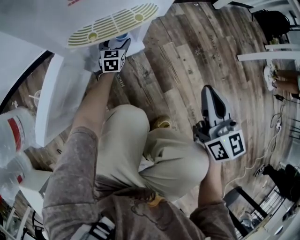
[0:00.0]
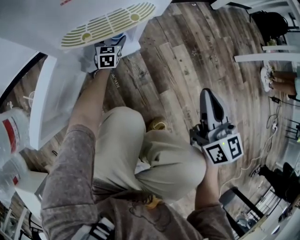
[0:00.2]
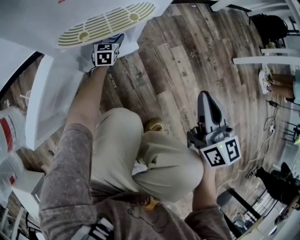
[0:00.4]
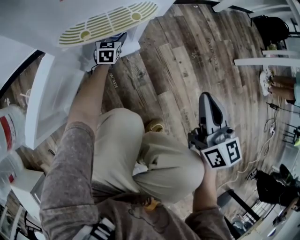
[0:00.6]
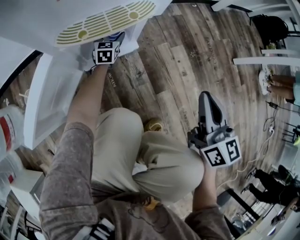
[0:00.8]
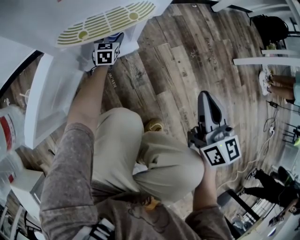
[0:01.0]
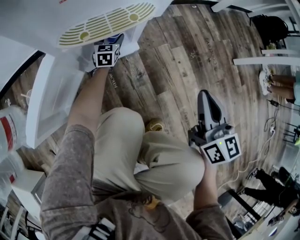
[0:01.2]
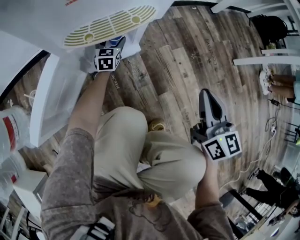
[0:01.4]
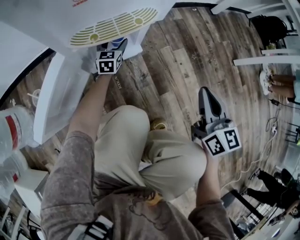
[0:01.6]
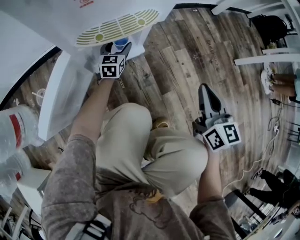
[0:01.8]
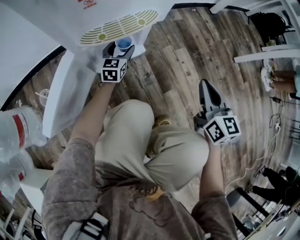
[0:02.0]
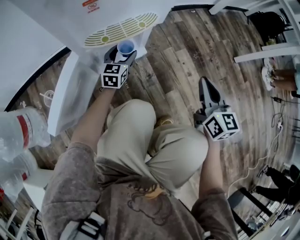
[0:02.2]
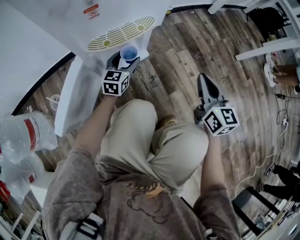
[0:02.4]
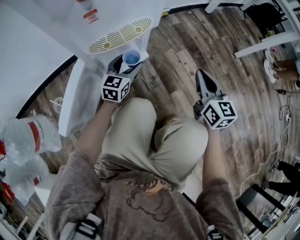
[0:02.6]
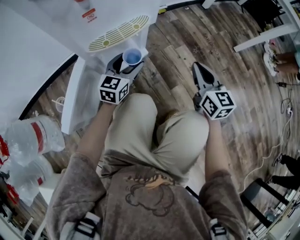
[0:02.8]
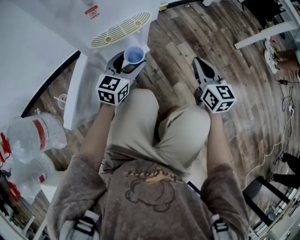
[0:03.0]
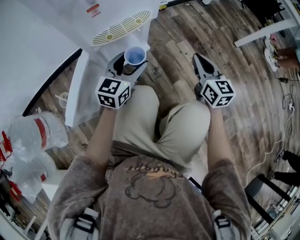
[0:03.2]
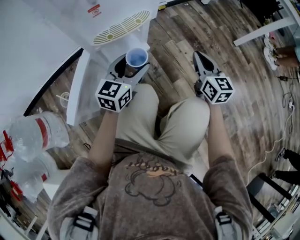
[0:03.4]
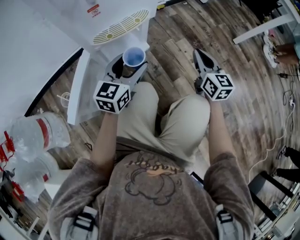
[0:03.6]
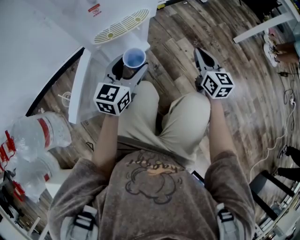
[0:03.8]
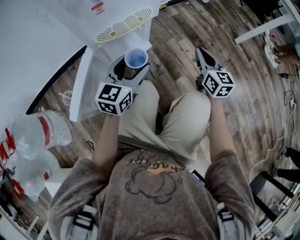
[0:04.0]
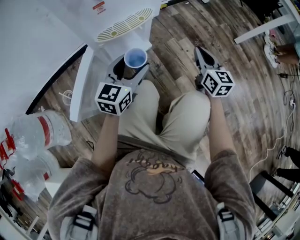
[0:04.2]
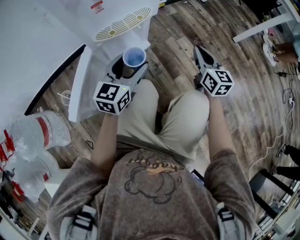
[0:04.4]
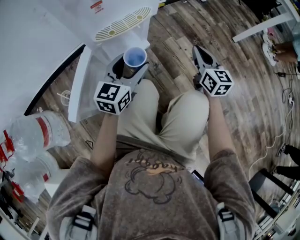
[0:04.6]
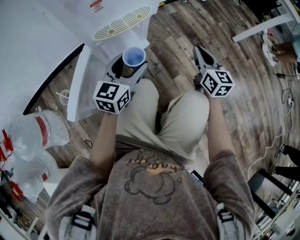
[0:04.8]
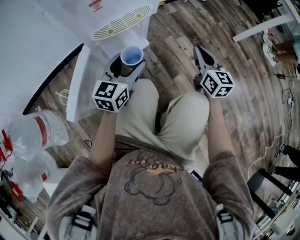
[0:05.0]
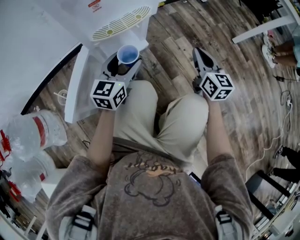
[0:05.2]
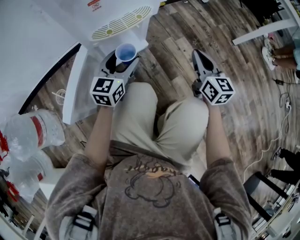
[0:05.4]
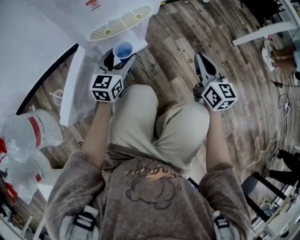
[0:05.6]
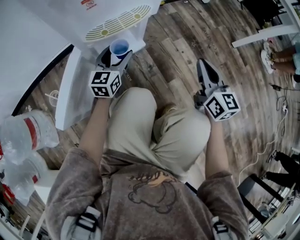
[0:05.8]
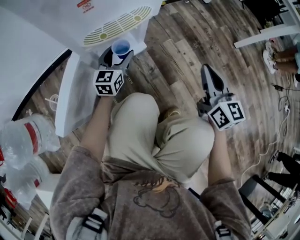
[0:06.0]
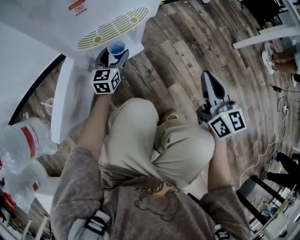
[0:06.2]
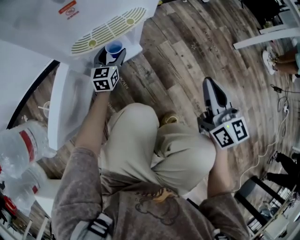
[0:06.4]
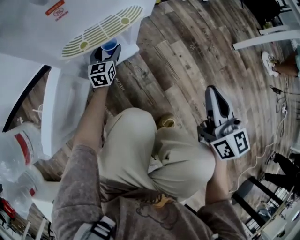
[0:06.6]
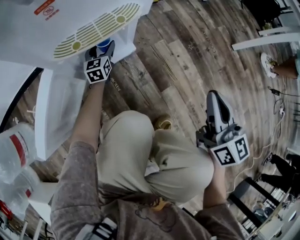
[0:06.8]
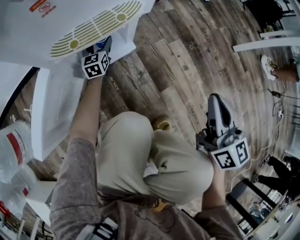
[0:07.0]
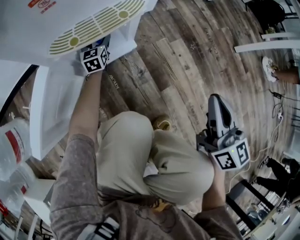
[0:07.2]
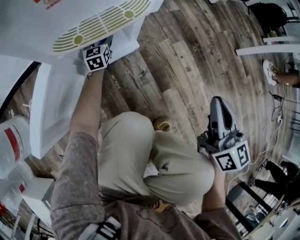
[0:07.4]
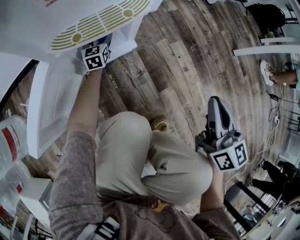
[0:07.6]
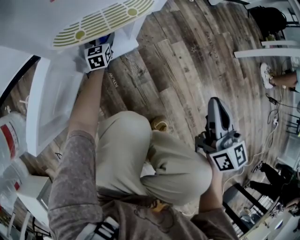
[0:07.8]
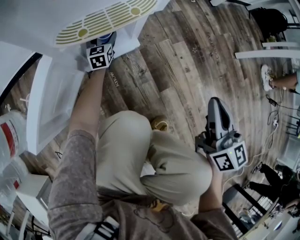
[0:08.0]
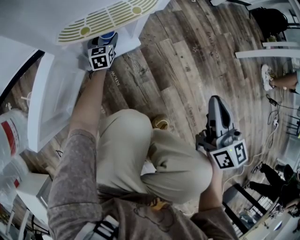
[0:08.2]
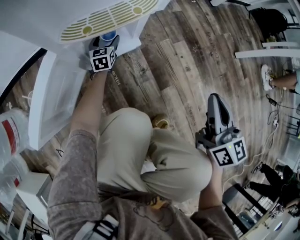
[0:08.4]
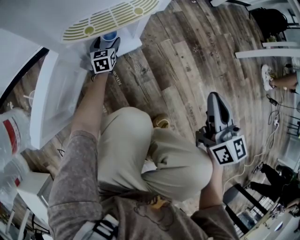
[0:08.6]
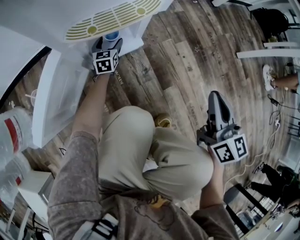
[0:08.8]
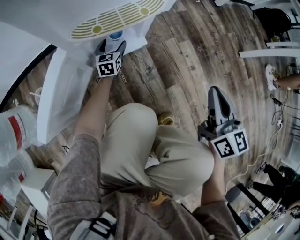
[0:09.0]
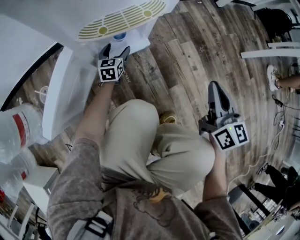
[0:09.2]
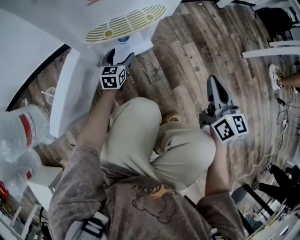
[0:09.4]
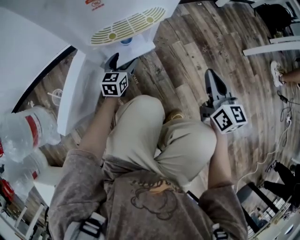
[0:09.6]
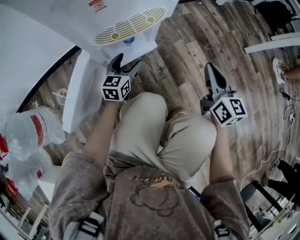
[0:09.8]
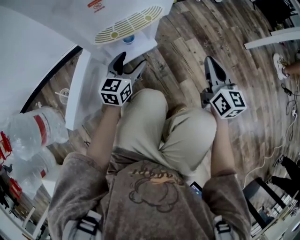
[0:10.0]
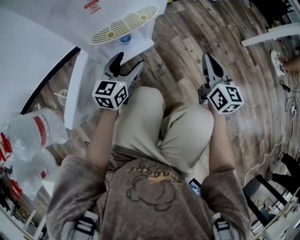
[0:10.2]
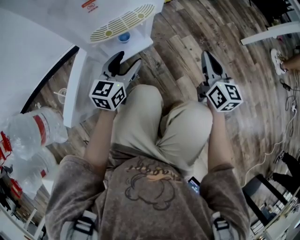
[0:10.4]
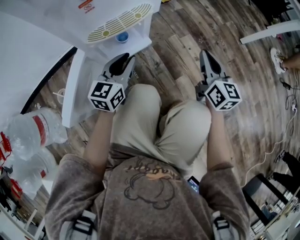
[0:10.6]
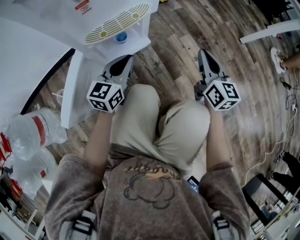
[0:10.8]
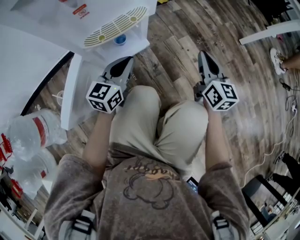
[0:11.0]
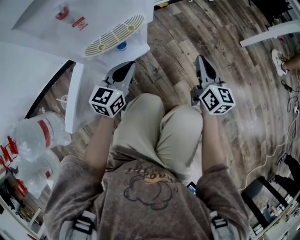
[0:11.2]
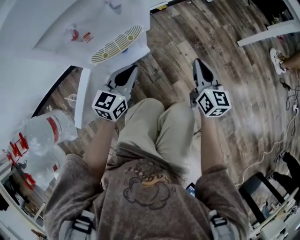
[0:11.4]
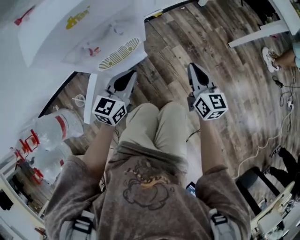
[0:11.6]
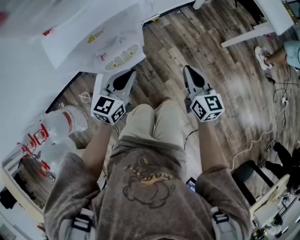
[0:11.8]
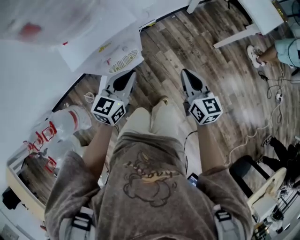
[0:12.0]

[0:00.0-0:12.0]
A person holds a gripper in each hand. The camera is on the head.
0:00.0 to 0:01.6: The grippers move only a little.
0:01.6 to 0:03.0: The left gripper heads upward and backward, covering roughly 25 cm, and changes its angle by approximately 30 degrees.
0:03.0 to 0:04.4: The left gripper travels backward and upward by approximately 10 cm.
0:04.4 to 0:06.0: The left gripper shifts about 20 cm downward and forward.
0:06.0 to 0:07.6: The left gripper shifts about 20 cm downward and forward.
0:07.6 to 0:09.0: The left gripper moves backward, approximately 5 cm.
0:09.0 to 0:10.4: The left gripper moves upward and backward, approximately 30 cm, and turns by roughly 30 degrees, while the right gripper changes place by about 5 cm.
0:10.4 to 0:12.0: Both grippers move upward, roughly 40 cm. The left gripper closes up.

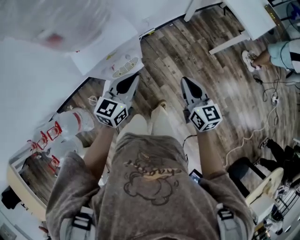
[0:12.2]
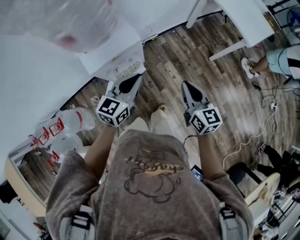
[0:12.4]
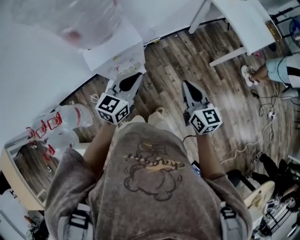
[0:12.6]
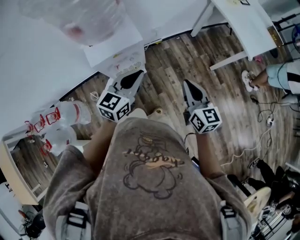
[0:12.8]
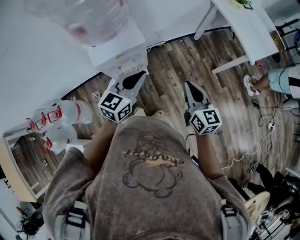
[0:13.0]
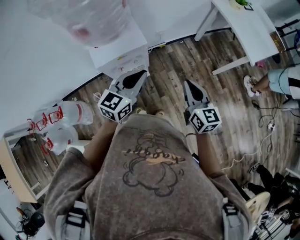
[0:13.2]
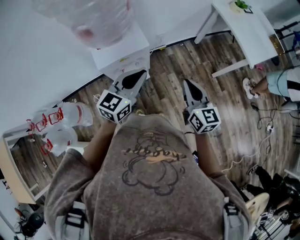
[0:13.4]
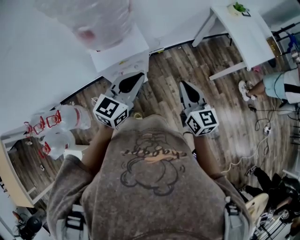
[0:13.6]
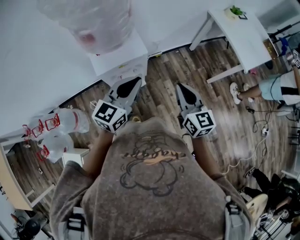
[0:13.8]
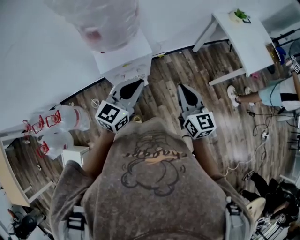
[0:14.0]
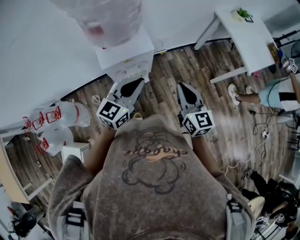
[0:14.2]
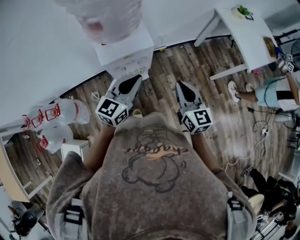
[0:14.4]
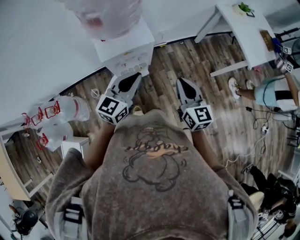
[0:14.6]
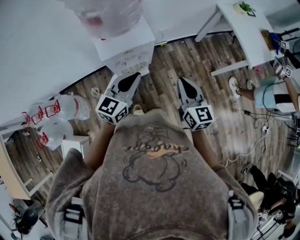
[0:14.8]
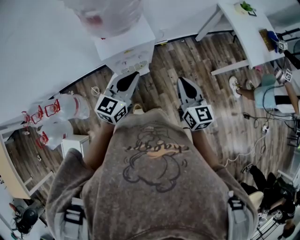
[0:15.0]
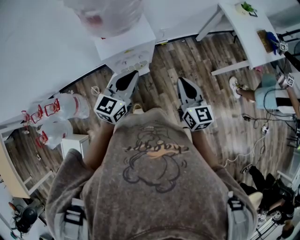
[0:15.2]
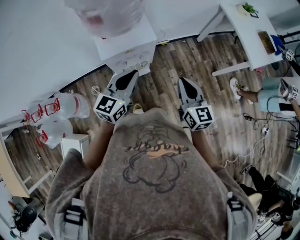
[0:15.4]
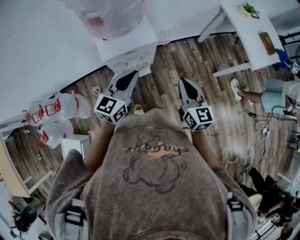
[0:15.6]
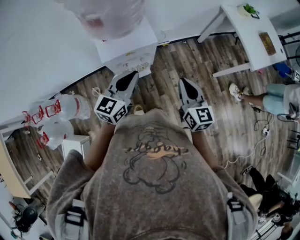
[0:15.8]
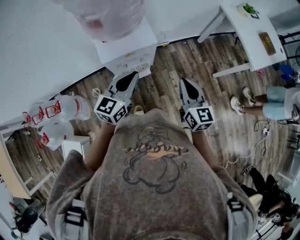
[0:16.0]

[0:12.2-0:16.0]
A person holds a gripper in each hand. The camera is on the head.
0:12.2 to 0:13.4: The grippers both shift upward by about 10 cm.
0:13.4 to 0:14.8: The right gripper shifts by some 5 cm; the left gripper travels to the left by about 5 cm.
0:14.8 to 0:16.0: The grippers move only a little.

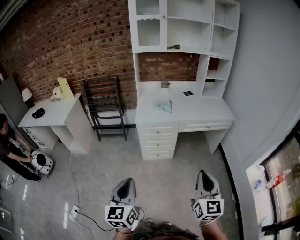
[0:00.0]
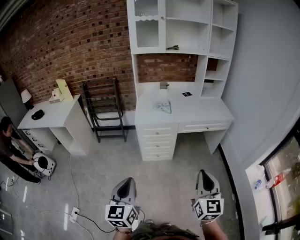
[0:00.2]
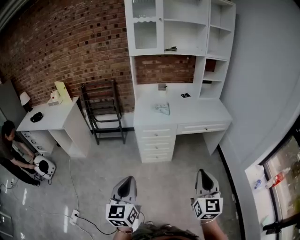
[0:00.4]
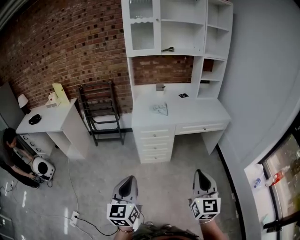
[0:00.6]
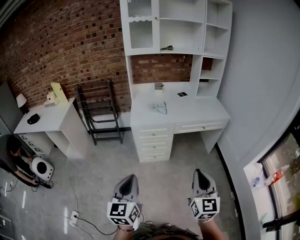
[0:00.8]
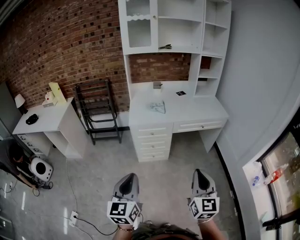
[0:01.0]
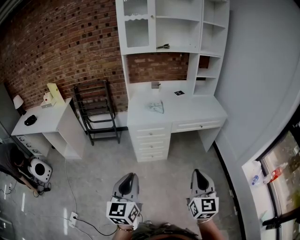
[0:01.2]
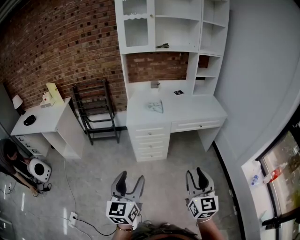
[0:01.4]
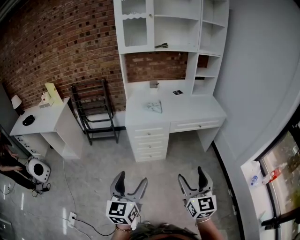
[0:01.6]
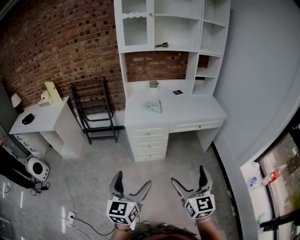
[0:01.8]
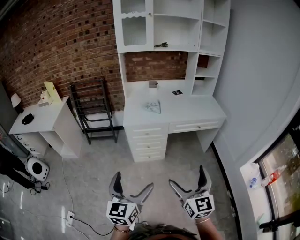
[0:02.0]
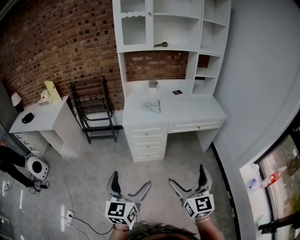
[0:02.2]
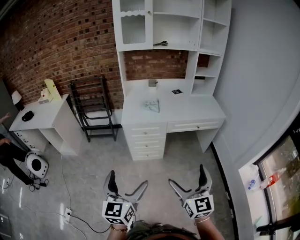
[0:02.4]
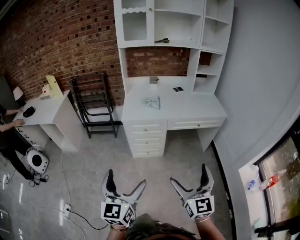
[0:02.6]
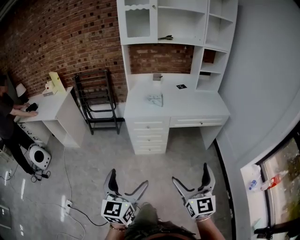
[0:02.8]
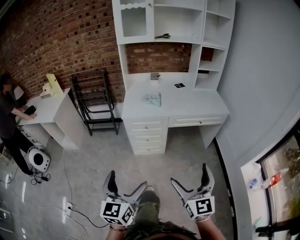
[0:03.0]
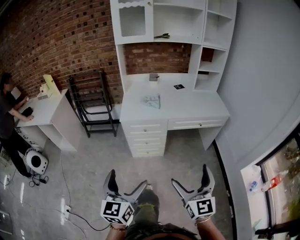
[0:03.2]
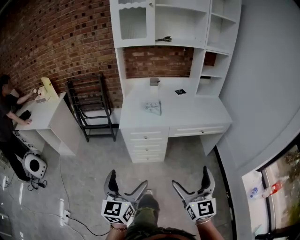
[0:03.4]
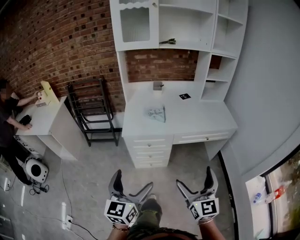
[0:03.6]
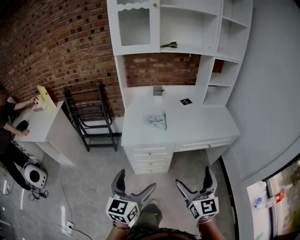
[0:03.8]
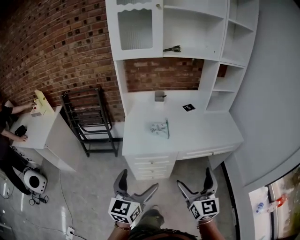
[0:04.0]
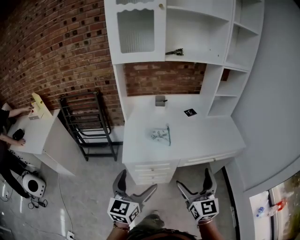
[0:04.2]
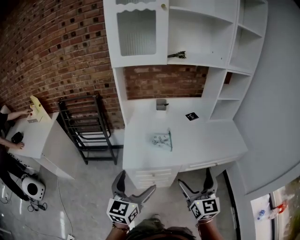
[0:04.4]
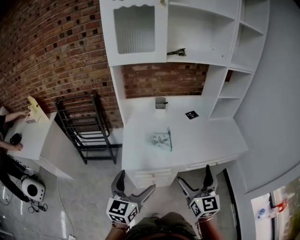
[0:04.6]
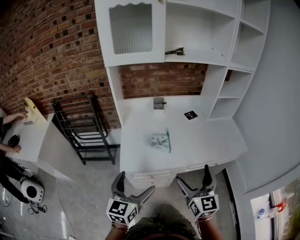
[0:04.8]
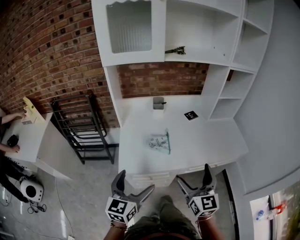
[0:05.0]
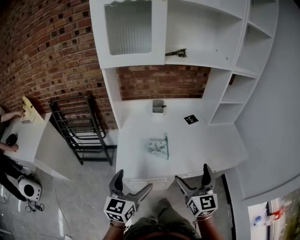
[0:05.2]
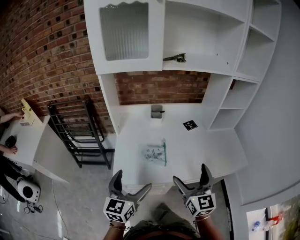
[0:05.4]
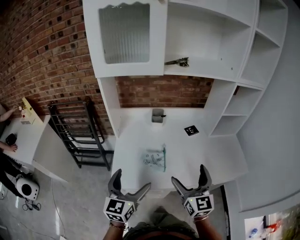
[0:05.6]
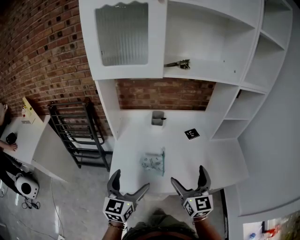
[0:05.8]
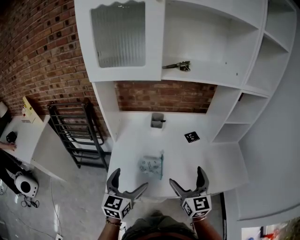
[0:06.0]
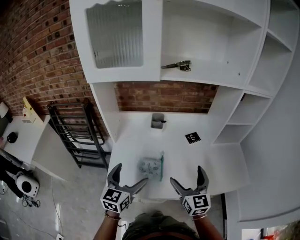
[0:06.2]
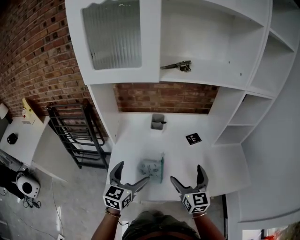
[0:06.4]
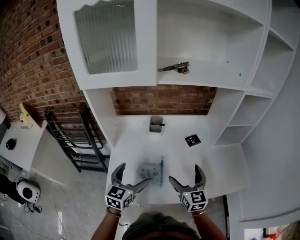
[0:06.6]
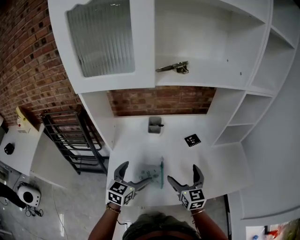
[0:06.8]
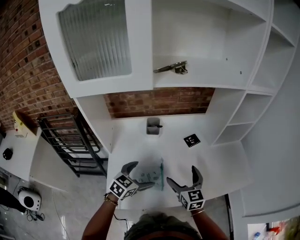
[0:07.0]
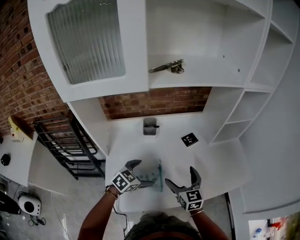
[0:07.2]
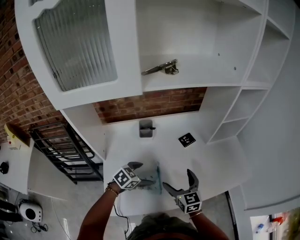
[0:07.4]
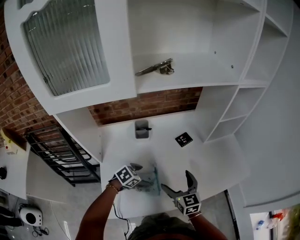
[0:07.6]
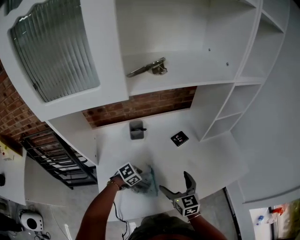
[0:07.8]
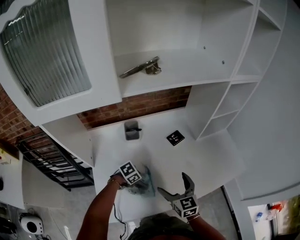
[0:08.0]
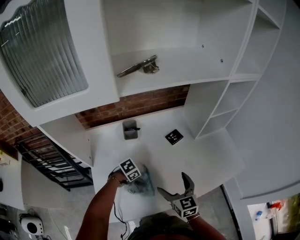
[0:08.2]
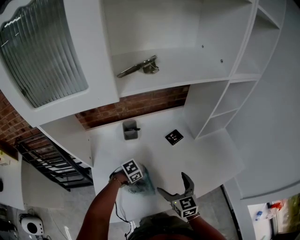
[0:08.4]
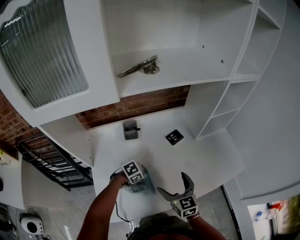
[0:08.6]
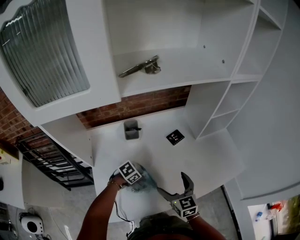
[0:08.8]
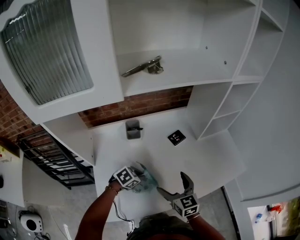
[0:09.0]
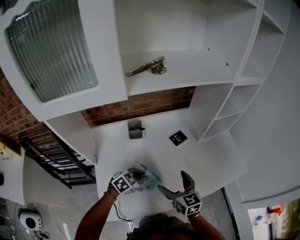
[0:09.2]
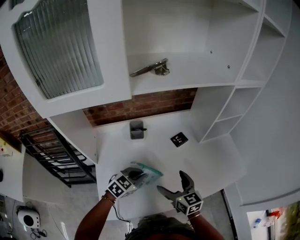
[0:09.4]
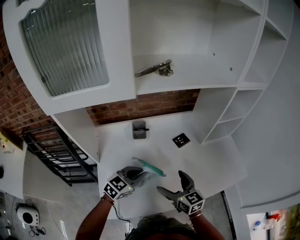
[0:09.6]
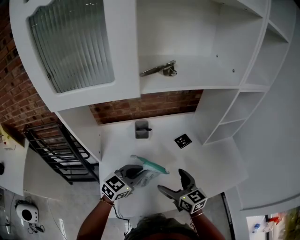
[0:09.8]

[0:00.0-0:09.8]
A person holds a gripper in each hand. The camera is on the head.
0:00.0 to 0:01.4: The left gripper goes roughly 5 cm forward, and opens its fingers.
0:01.4 to 0:02.8: The right gripper opens. The left gripper is displaced to the right by some 5 cm, and opens its fingers.
0:02.8 to 0:04.2: The grippers both shift forward by approximately 35 cm.
0:04.2 to 0:05.6: The grippers both shift forward by about 20 cm.
0:05.6 to 0:07.0: The grippers both shift forward and downward by roughly 20 cm. The left gripper rotates about 40 degrees.
0:07.0 to 0:08.4: The left gripper is displaced downward by about 15 cm, tips its fingers downward by approximately 30 degrees, and closes its fingers.
0:08.4 to 0:09.8: The right gripper heads upward, covering roughly 5 cm, and swivels approximately 20 degrees. The left gripper travels upward by roughly 20 cm, and angles its fingers upward, by approximately 40 degrees.
